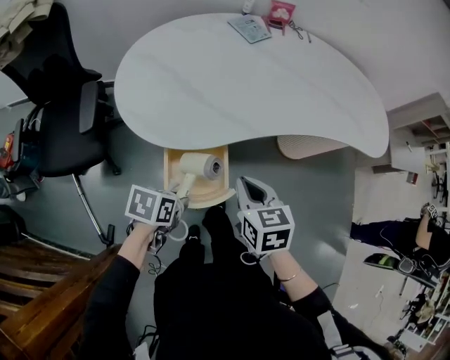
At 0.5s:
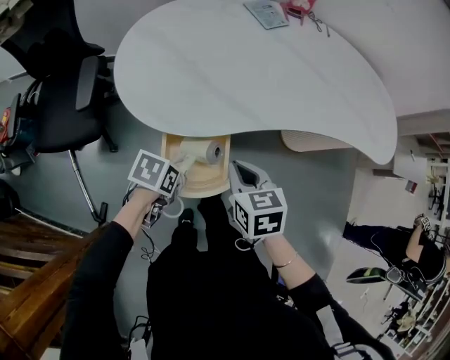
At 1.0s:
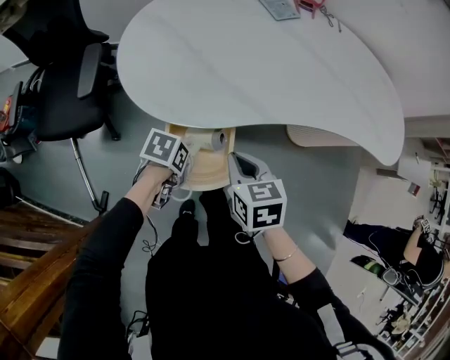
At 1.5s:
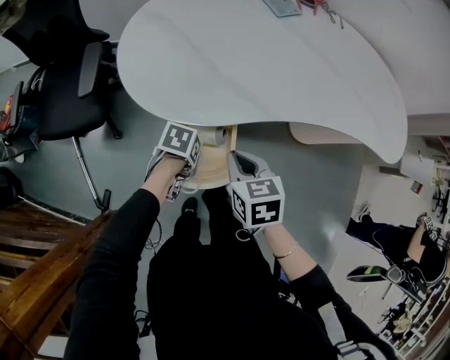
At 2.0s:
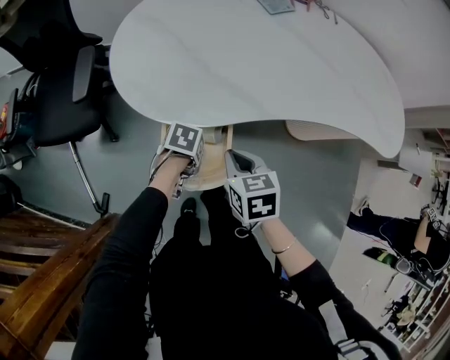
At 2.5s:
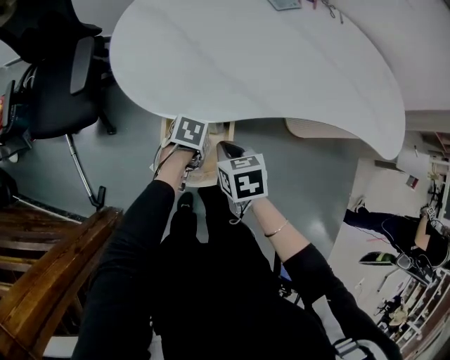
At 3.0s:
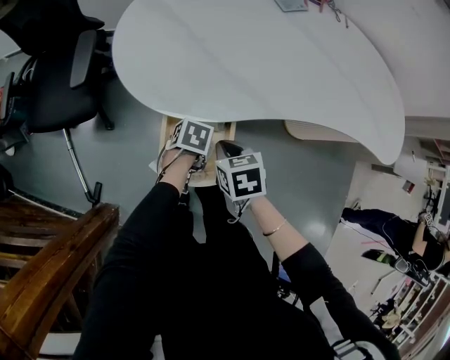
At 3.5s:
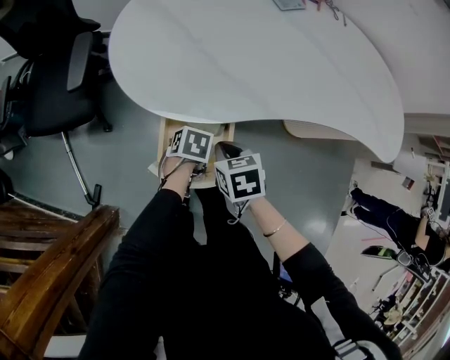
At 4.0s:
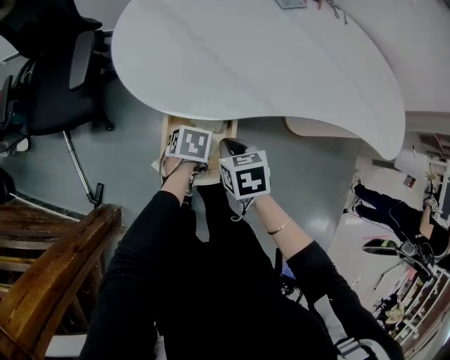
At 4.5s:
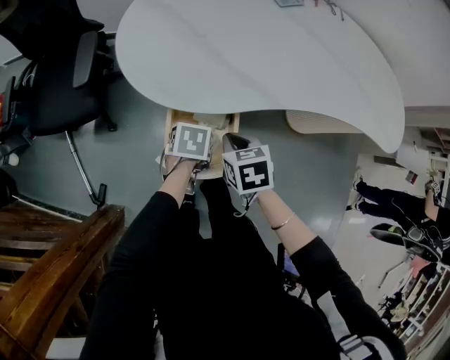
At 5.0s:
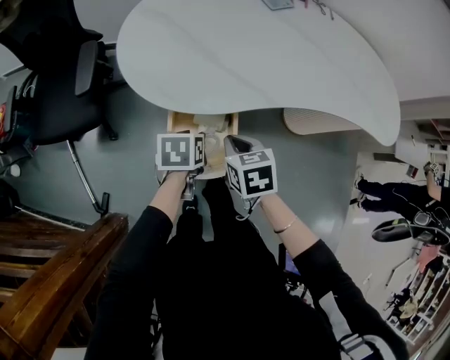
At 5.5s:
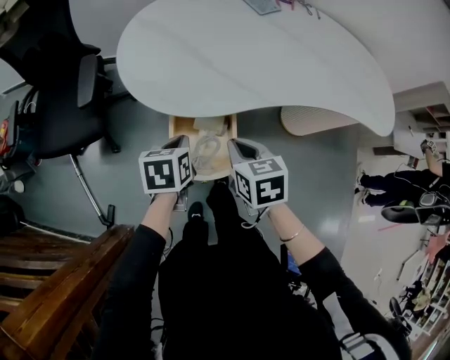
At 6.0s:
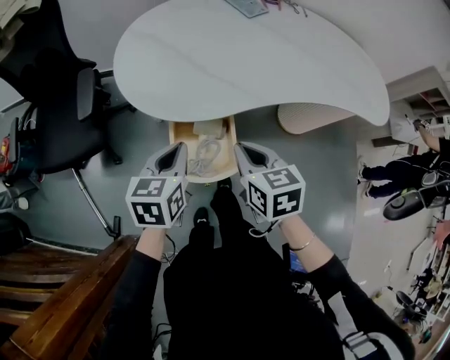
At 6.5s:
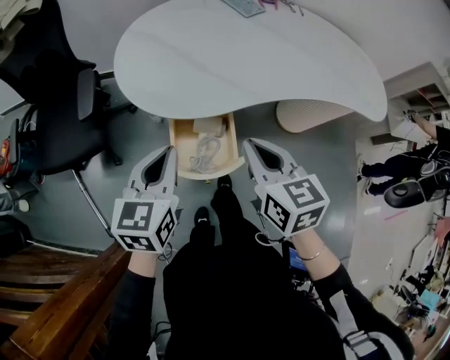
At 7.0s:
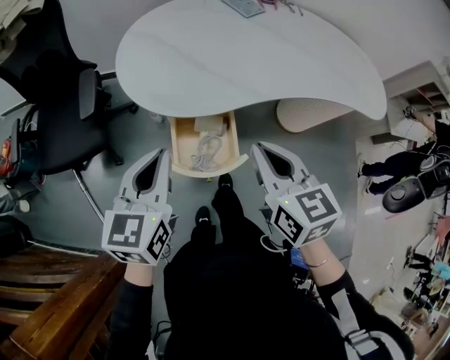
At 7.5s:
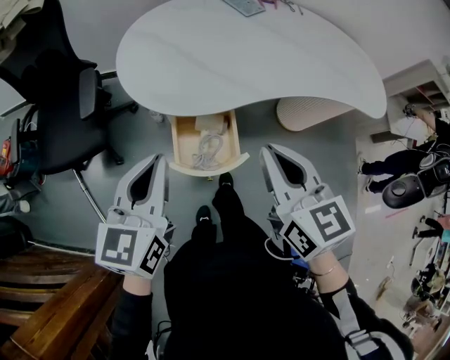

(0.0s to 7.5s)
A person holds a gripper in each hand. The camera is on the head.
0.0s - 2.0s: The left gripper goes roughly 10 cm downward and forward, and swivels some 20 degrees, while the right gripper goes approximately 5 cm downward.
2.0s - 4.0s: The right gripper goes about 5 cm downward.
4.0s - 5.5s: The right gripper moves upward, roughly 10 cm, while the left gripper shifts some 15 cm upward and to the left, rotates roughly 30 degrees, and closes.
5.5s - 7.5s: The grippers both shift upward and backward by about 20 cm. The left gripper points its fingers some 30 degrees further upward; the right gripper turns by roughly 30 degrees.

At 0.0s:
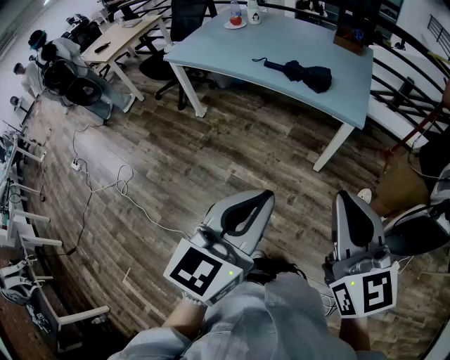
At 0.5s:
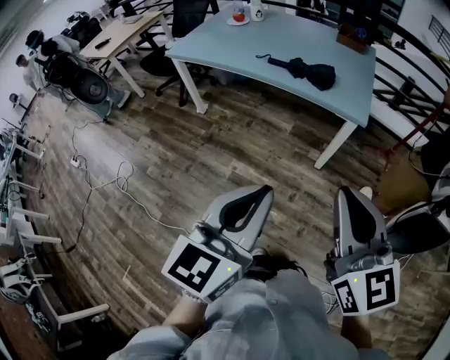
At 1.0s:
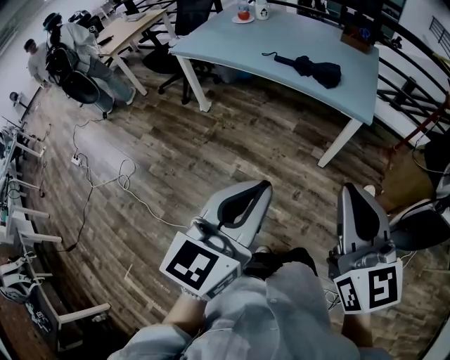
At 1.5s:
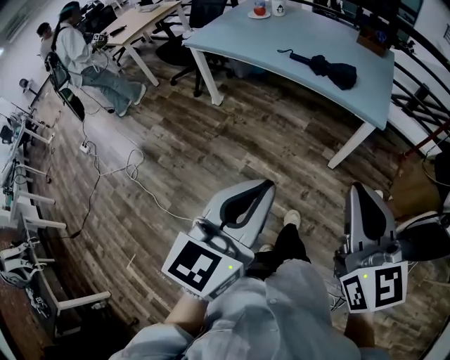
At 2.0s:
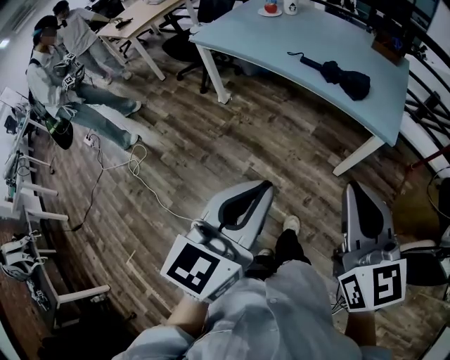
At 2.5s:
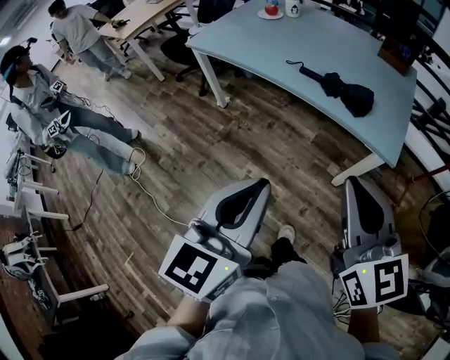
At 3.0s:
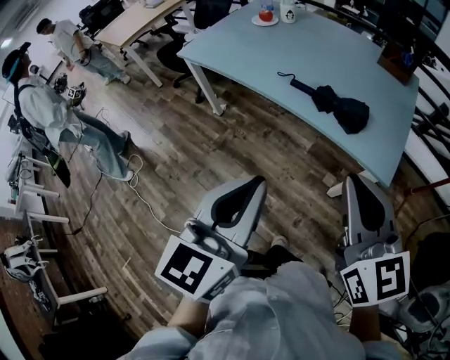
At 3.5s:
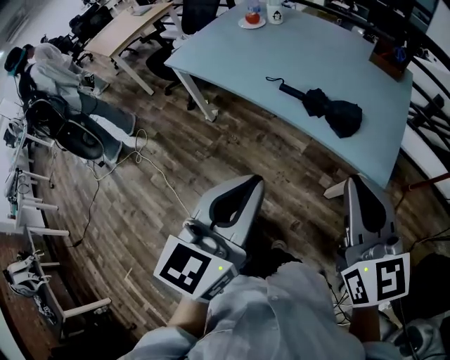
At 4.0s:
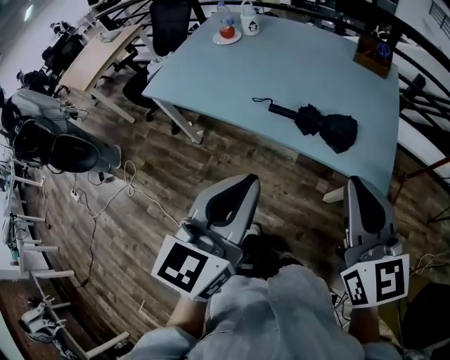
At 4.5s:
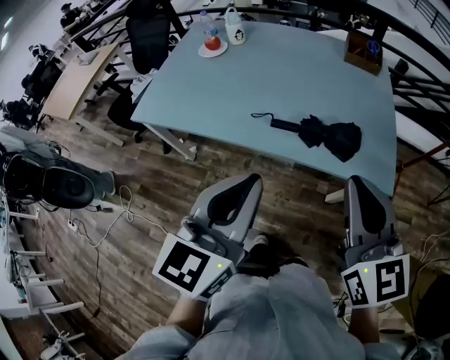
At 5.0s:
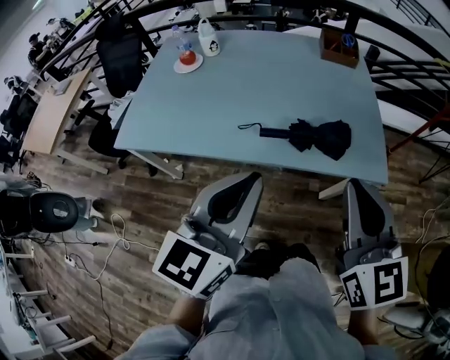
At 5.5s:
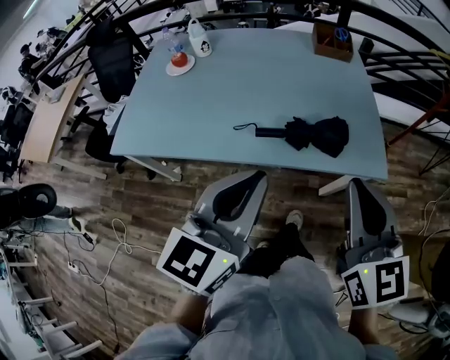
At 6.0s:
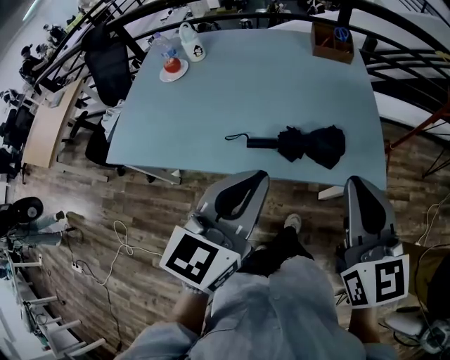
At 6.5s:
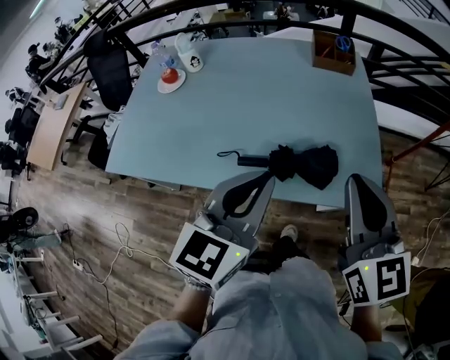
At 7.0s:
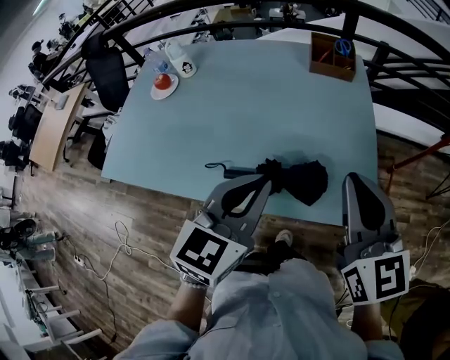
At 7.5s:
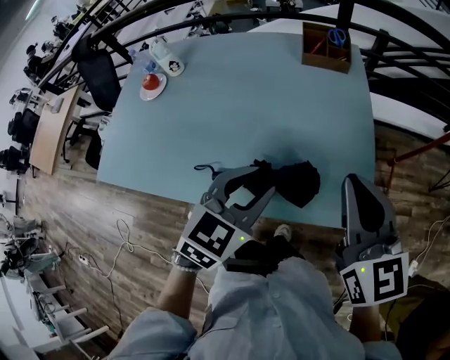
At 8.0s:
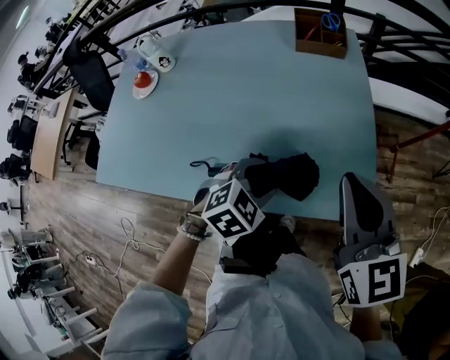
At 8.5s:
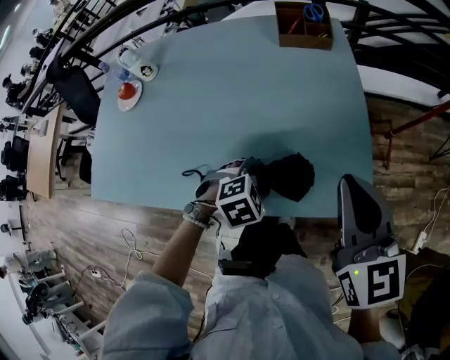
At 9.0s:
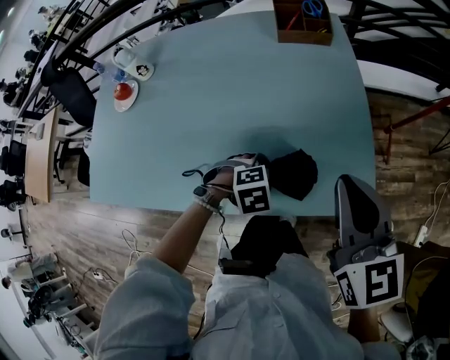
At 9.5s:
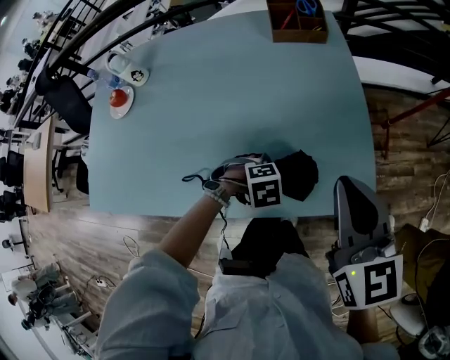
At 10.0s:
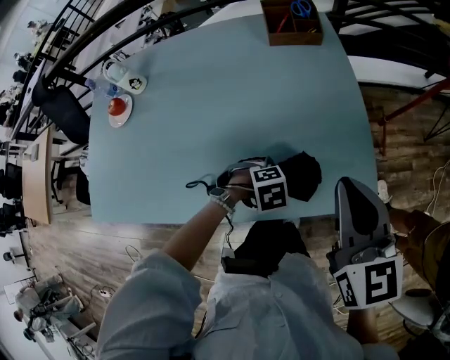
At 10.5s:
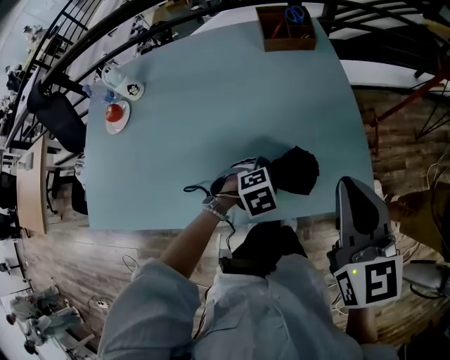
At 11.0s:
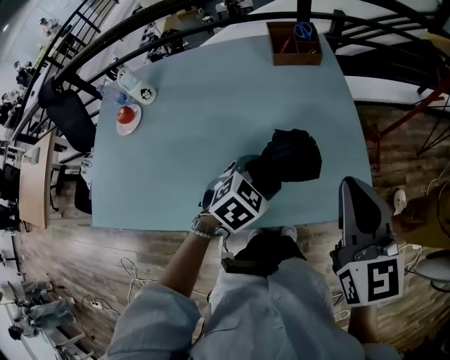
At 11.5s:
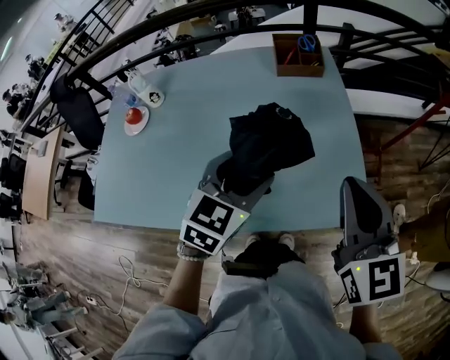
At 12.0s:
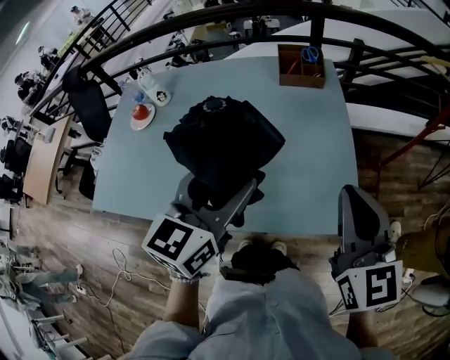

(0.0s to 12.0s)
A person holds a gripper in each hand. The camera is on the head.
0.0s - 2.0s: The left gripper moves to the left and forward, about 10 cm, while the right gripper moves forward and to the left, approximately 10 cm.
2.0s - 4.0s: The grippers both shift forward by roughly 30 cm.
4.0s - 6.0s: The right gripper heads forward, covering approximately 10 cm, and swivels some 20 degrees. Meanwhile the left gripper moves forward, about 15 cm, and changes its angle by some 20 degrees.
6.0s - 8.0s: The right gripper shifts roughly 20 cm forward and to the right, while the left gripper goes roughly 30 cm downward, forward and to the right, angles its fingers downward, by some 50 degrees, and opens its fingers.
8.0s - 10.0s: The left gripper travels downward by approximately 15 cm, and turns by roughly 40 degrees.
10.0s - 12.0s: The right gripper shifts approximately 5 cm upward. Meanwhile the left gripper shifts approximately 35 cm upward, and points its fingers some 70 degrees further upward.

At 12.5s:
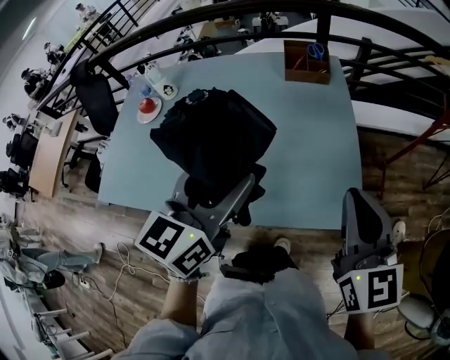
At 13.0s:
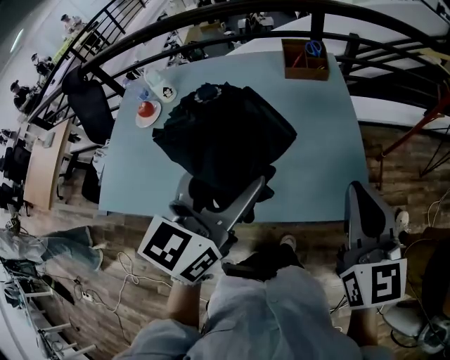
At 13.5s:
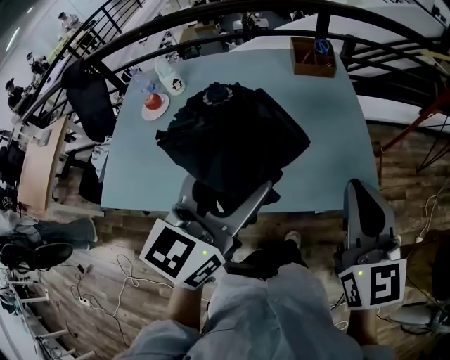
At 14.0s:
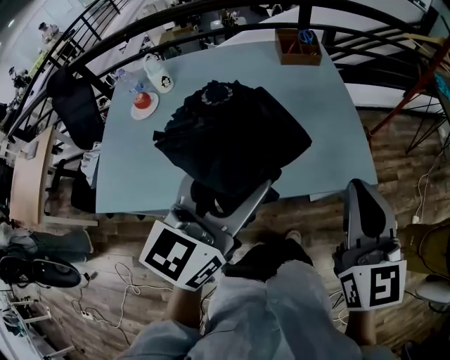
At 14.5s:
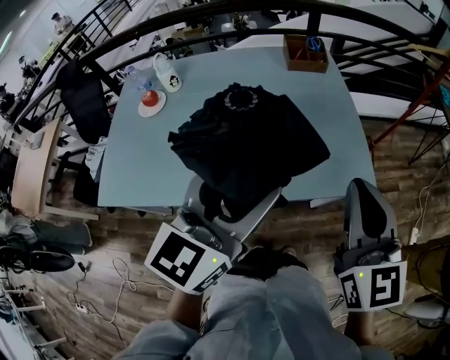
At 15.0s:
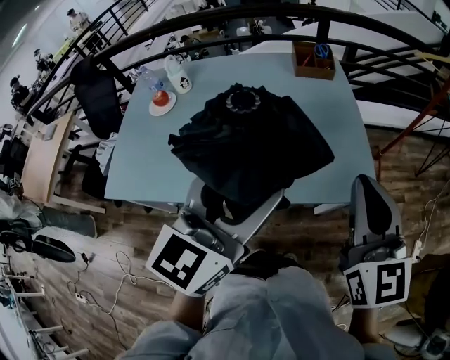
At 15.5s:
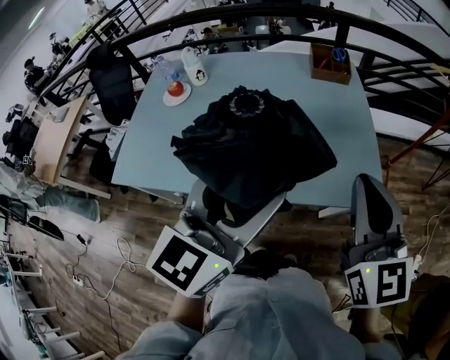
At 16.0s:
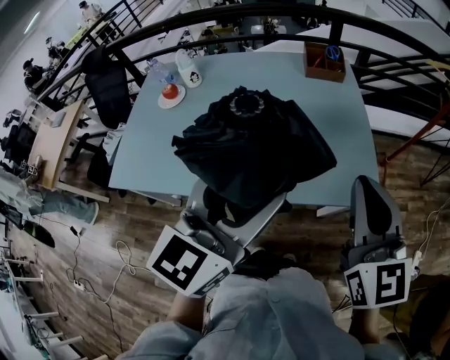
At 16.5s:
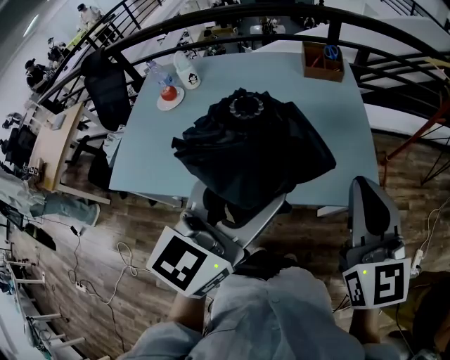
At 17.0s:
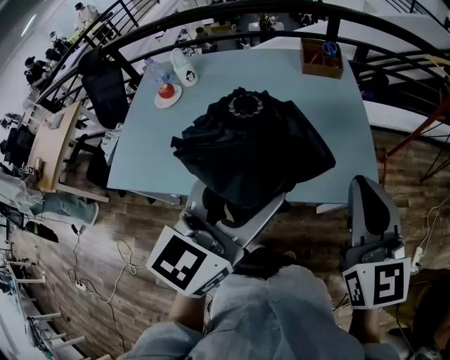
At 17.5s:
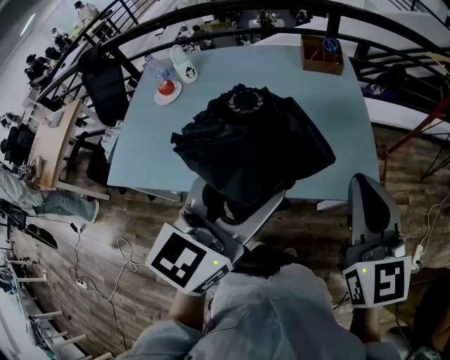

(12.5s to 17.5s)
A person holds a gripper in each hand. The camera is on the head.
12.5s - 15.0s: The right gripper goes about 15 cm to the left and backward; the left gripper goes some 10 cm backward.
15.0s - 17.5s: There are only small adjustments of the grippers.

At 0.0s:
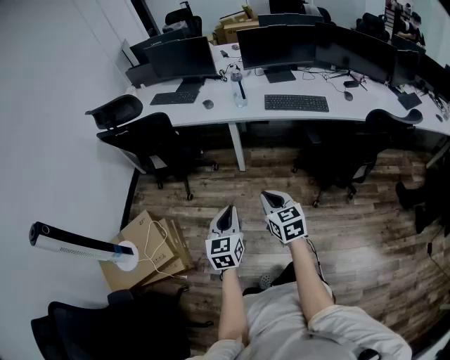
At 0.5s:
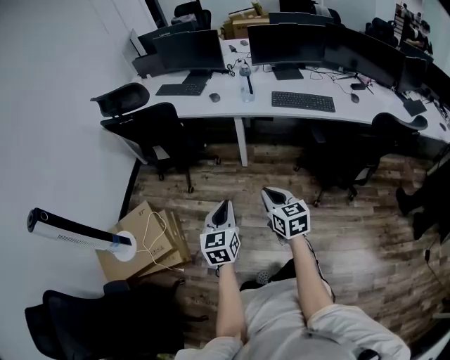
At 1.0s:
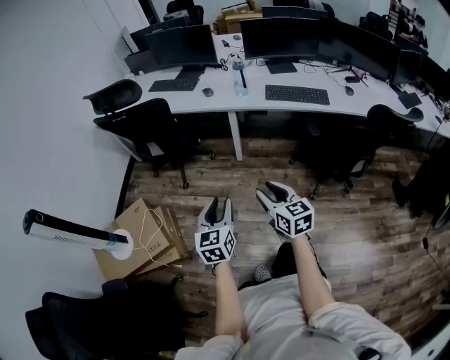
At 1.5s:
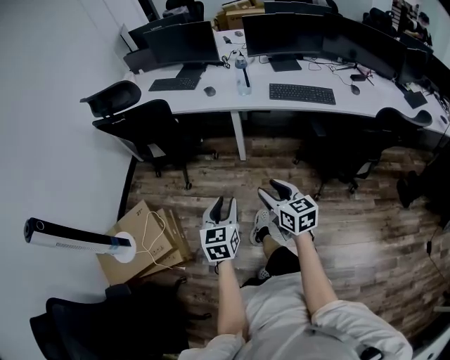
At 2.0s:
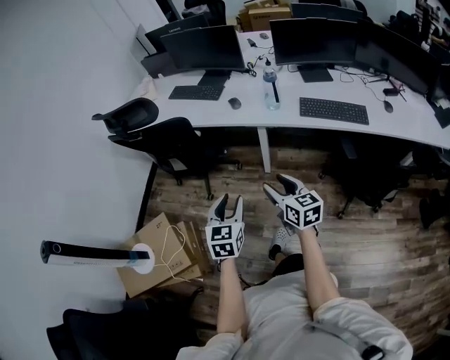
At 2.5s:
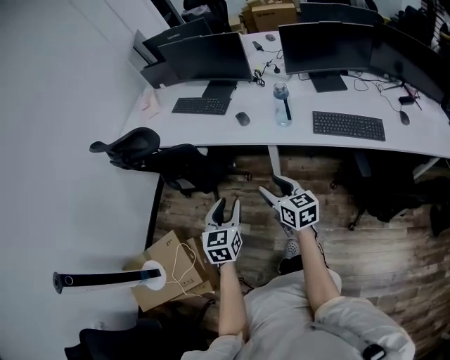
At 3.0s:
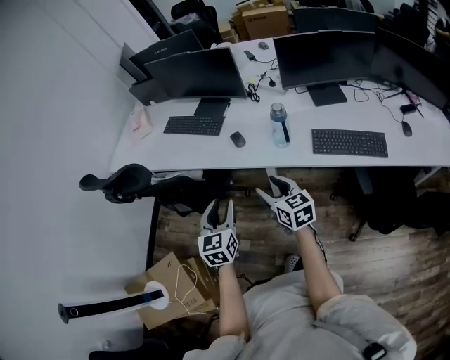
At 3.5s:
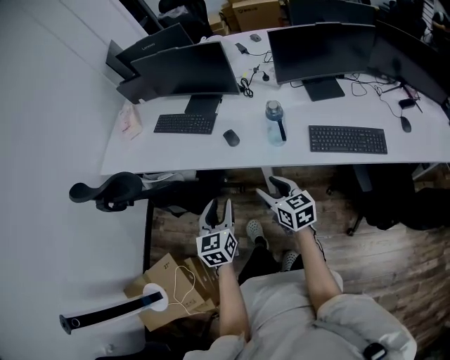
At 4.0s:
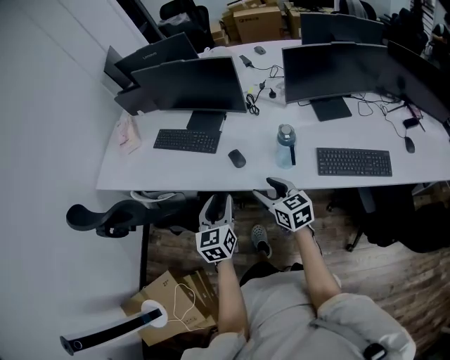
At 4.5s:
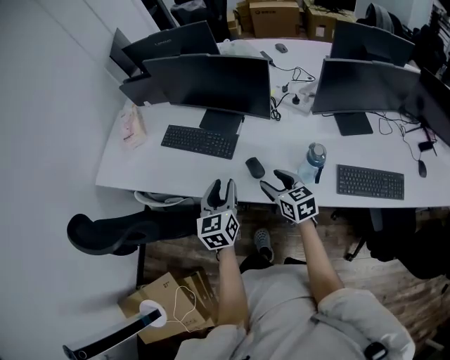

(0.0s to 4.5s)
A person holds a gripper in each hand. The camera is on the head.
0.0s - 2.0s: Both grippers travel together forward, some 20 cm. The left gripper opens. The right gripper opens.
2.0s - 4.5s: Both grippers are carried forward, about 50 cm.
